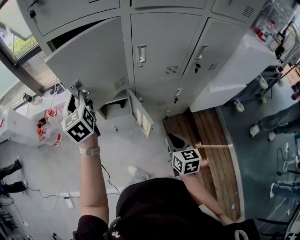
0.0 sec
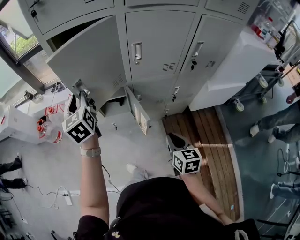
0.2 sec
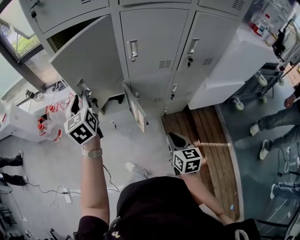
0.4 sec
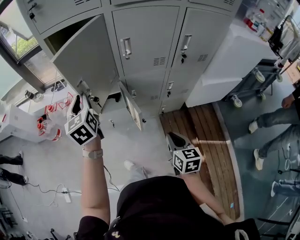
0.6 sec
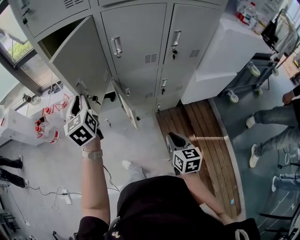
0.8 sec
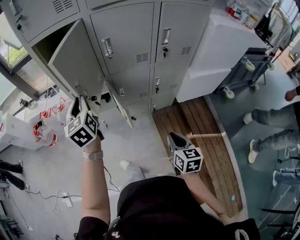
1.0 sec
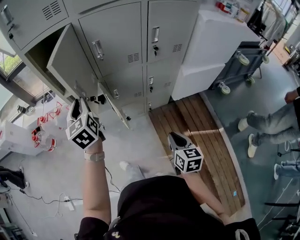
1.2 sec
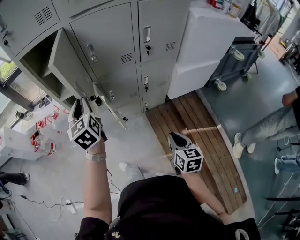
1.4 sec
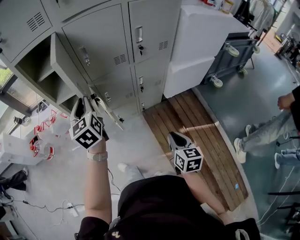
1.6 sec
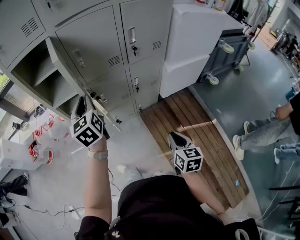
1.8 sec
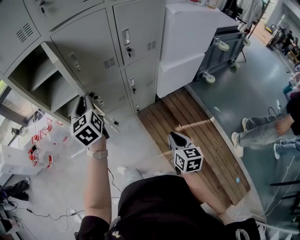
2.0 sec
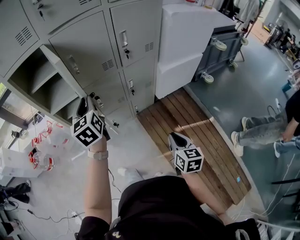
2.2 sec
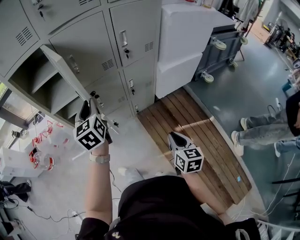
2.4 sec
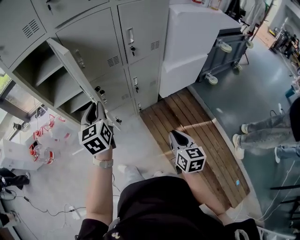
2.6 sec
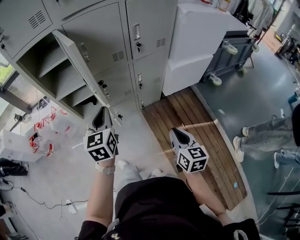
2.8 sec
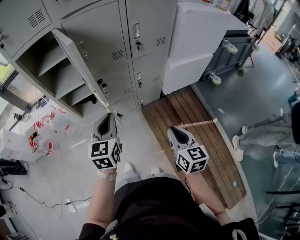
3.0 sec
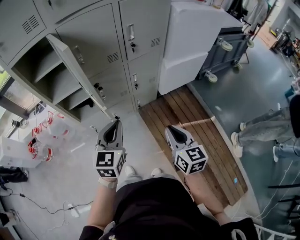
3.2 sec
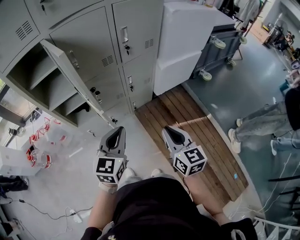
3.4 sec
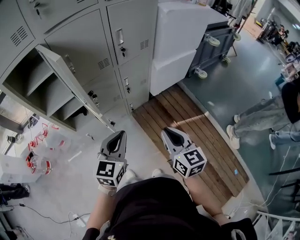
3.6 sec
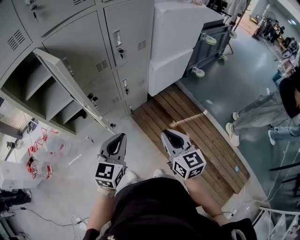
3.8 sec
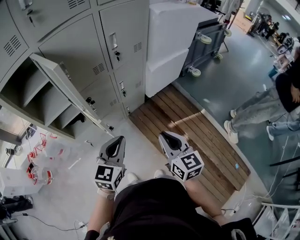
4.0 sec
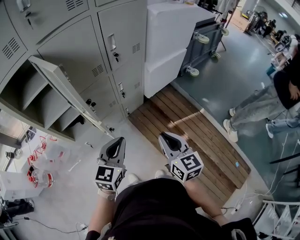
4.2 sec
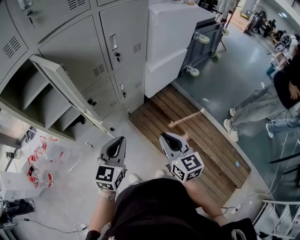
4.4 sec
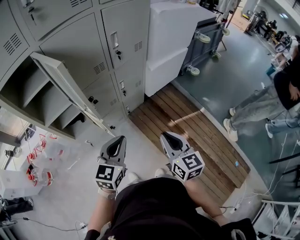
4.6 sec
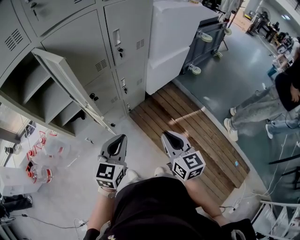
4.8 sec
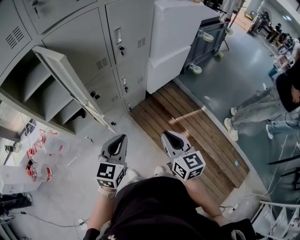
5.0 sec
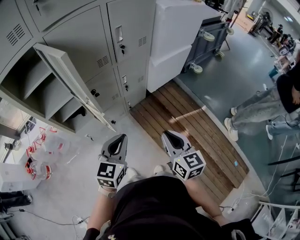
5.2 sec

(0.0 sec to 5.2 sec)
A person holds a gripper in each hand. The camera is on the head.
0.0 sec - 1.8 sec: The left gripper heads to the right and backward, covering roughly 30 cm. The right gripper goes some 25 cm backward and to the right.
1.8 sec - 3.4 sec: The left gripper moves backward and to the right, roughly 20 cm, and rotates roughly 40 degrees, while the right gripper travels upward by approximately 10 cm.
3.4 sec - 5.2 sec: The grippers stay close to where they were, moving slightly.

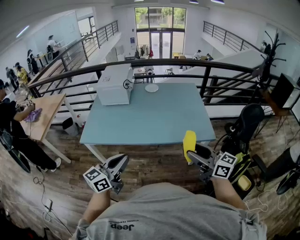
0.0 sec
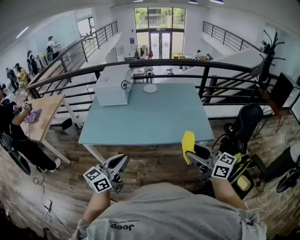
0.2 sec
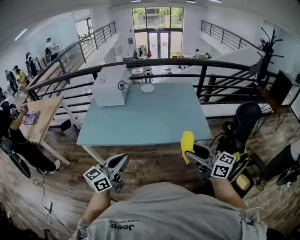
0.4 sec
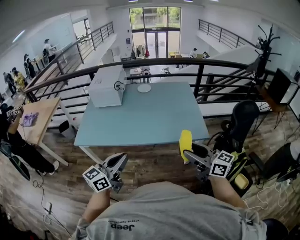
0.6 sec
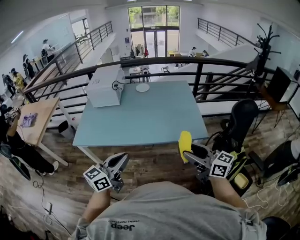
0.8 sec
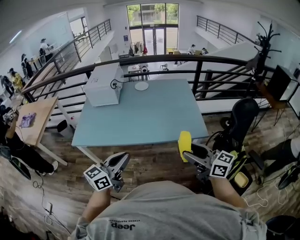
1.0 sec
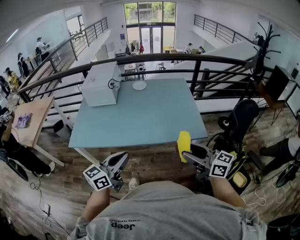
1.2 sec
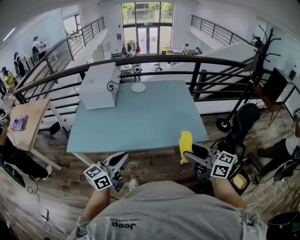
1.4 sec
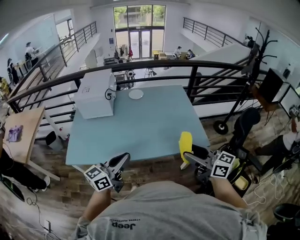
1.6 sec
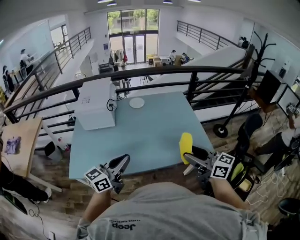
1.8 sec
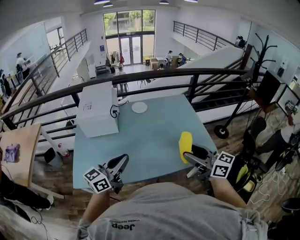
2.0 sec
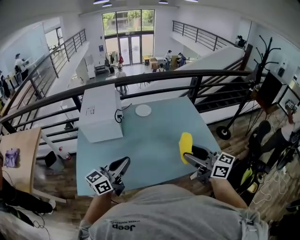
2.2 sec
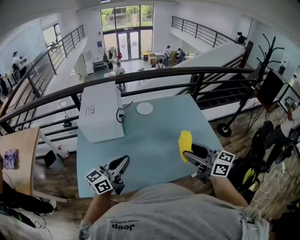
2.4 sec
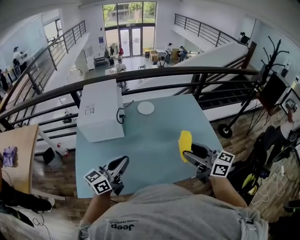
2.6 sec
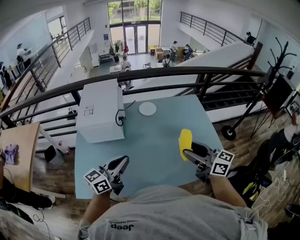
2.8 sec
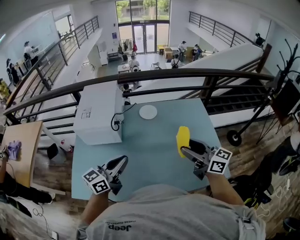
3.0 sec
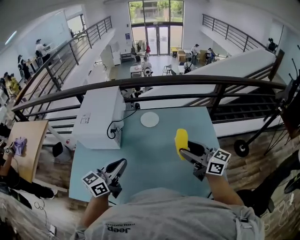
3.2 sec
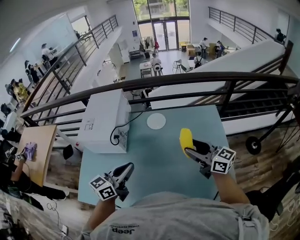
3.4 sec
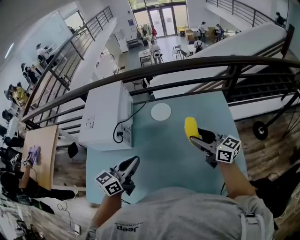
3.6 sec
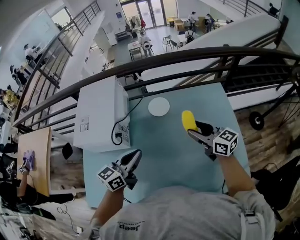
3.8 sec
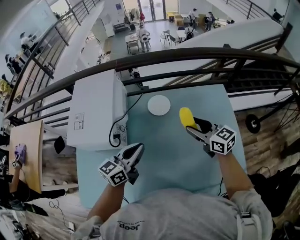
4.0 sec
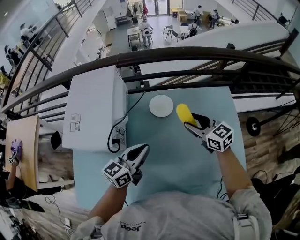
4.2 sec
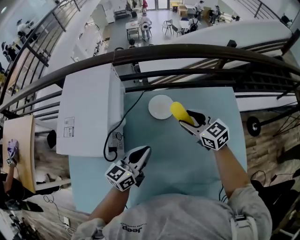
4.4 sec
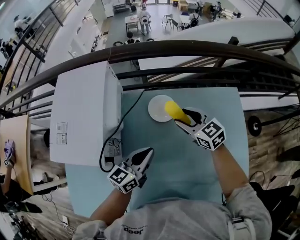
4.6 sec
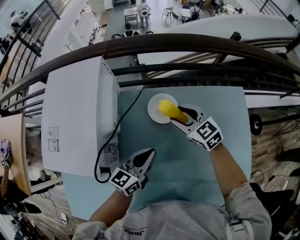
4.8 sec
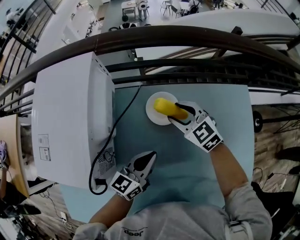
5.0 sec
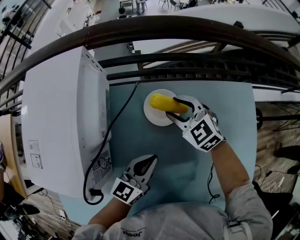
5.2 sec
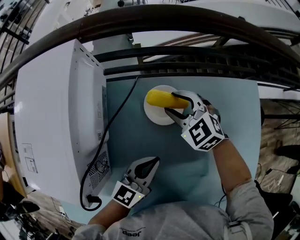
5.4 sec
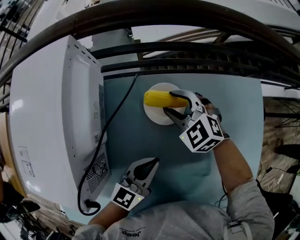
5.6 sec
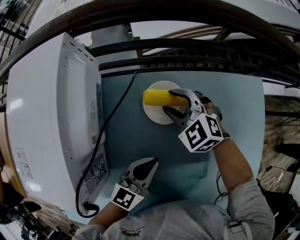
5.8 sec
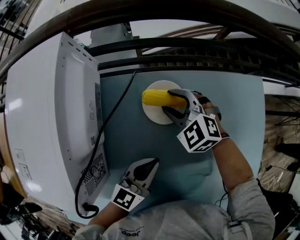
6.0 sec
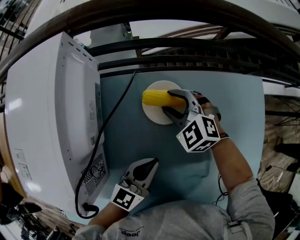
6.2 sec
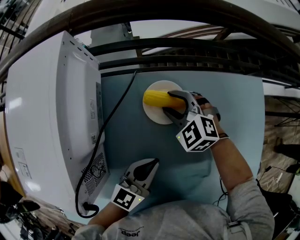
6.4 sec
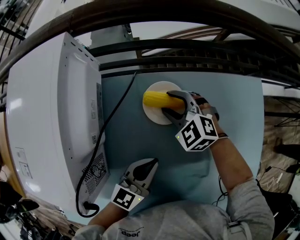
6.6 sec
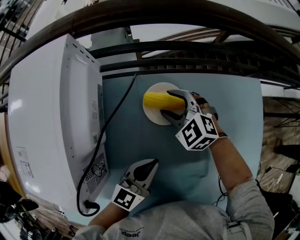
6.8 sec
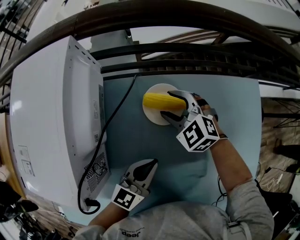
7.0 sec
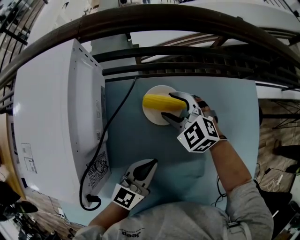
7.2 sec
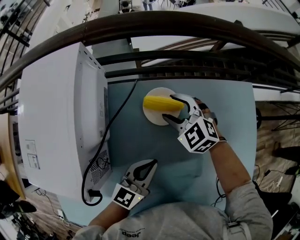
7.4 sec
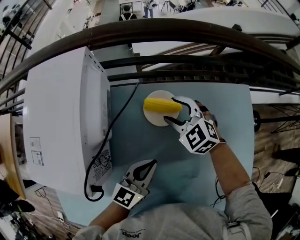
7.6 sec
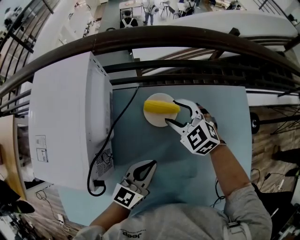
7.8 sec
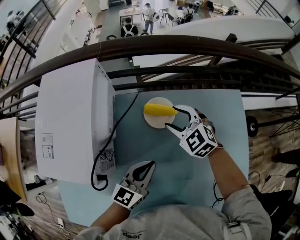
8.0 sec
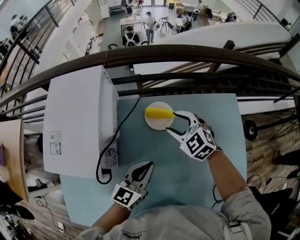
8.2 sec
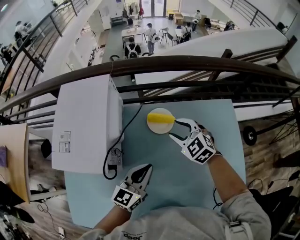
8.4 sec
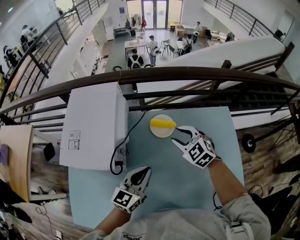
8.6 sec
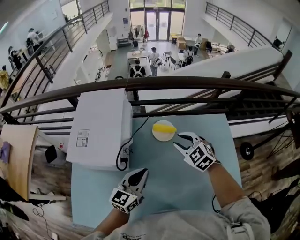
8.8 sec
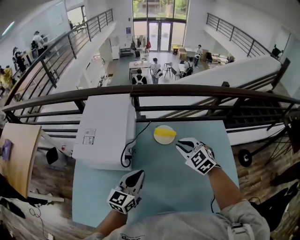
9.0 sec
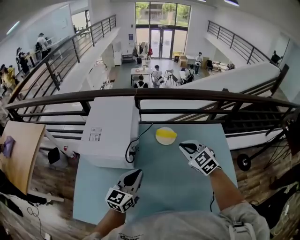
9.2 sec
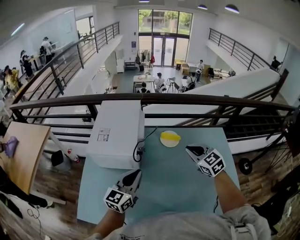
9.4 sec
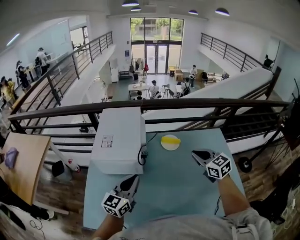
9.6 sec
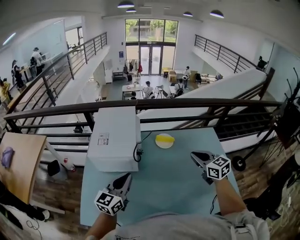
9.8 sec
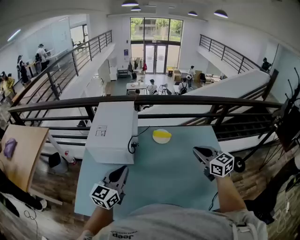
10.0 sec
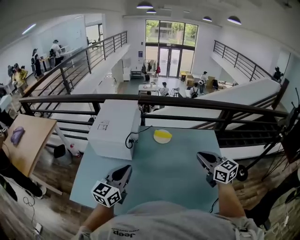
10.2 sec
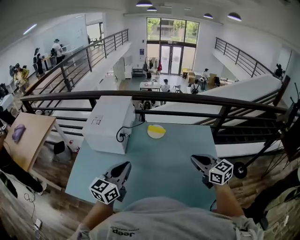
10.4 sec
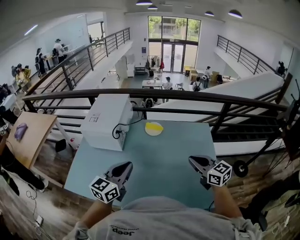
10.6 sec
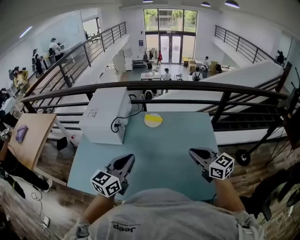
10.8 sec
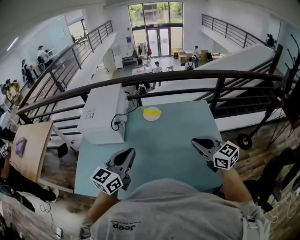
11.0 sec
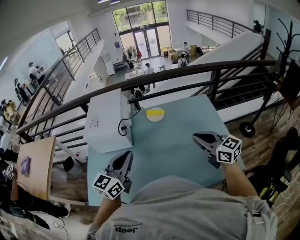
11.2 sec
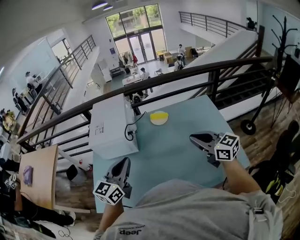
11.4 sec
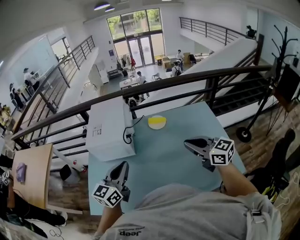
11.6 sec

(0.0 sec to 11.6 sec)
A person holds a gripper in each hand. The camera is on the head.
0.0 sec - 1.4 sec: The right gripper shifts about 5 cm forward. The left gripper shifts roughly 10 cm forward and to the right.
1.4 sec - 2.8 sec: The two grippers go approximately 35 cm forward and to the left.
2.8 sec - 4.4 sec: Both grippers move forward and downward, about 40 cm. The right gripper rotates some 30 degrees.
4.4 sec - 5.8 sec: The right gripper shifts roughly 20 cm downward, forward and to the left, and turns by approximately 40 degrees; the left gripper shifts approximately 15 cm downward.
5.8 sec - 7.2 sec: The grippers make only small movements.
7.2 sec - 8.8 sec: The grippers both shift upward and backward by some 20 cm. The right gripper closes.
8.8 sec - 10.2 sec: The left gripper goes roughly 25 cm backward and upward. Meanwhile the right gripper moves backward, upward and to the right, about 30 cm, turns by about 40 degrees, and closes its fingers.
10.2 sec - 11.6 sec: The right gripper moves to the left and backward, roughly 10 cm; the left gripper reaches approximately 10 cm to the right, then returns.

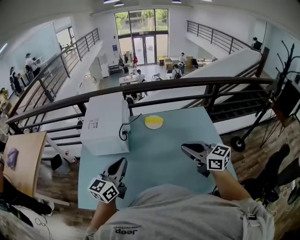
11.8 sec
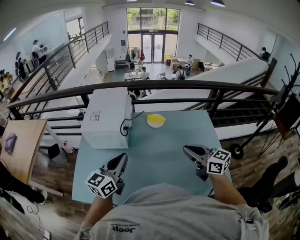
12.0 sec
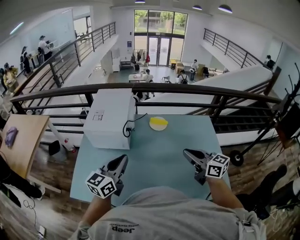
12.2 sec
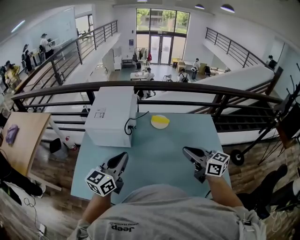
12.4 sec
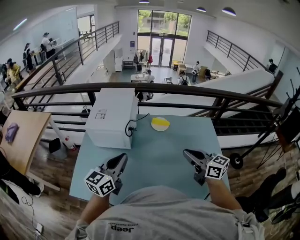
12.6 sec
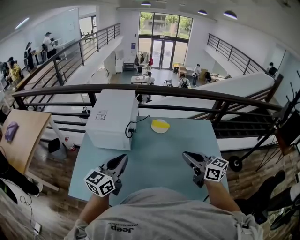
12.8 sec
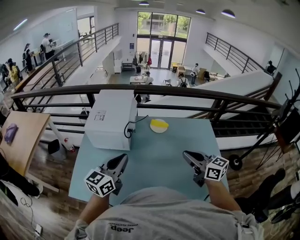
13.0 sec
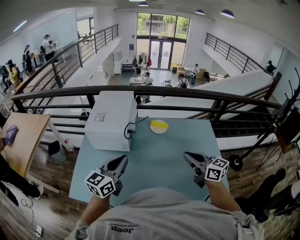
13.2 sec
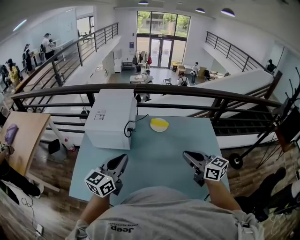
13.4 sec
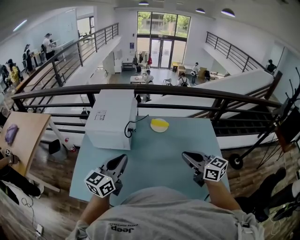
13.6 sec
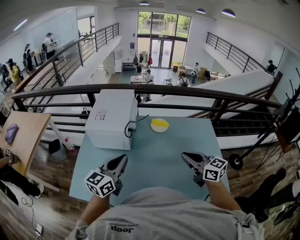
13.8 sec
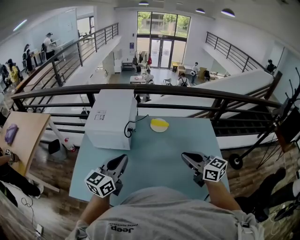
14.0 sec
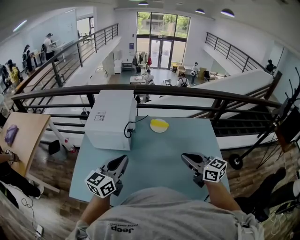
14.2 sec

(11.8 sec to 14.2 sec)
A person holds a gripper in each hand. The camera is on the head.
11.8 sec - 14.2 sec: The grippers make only small movements.

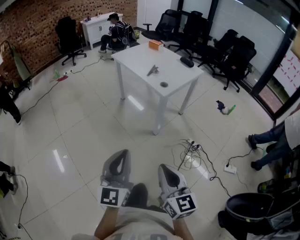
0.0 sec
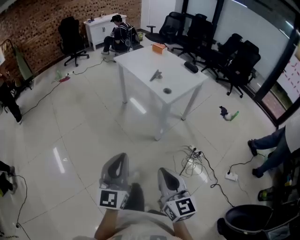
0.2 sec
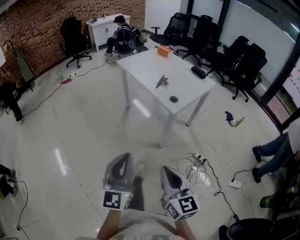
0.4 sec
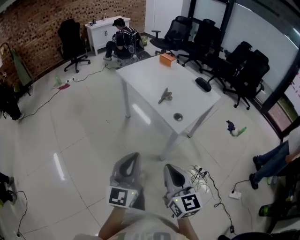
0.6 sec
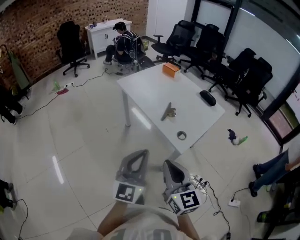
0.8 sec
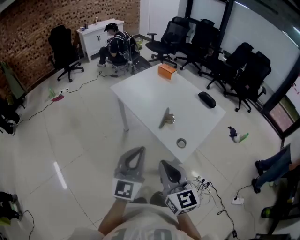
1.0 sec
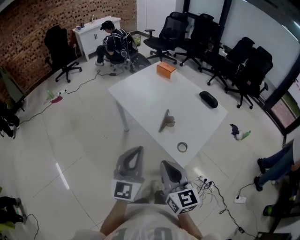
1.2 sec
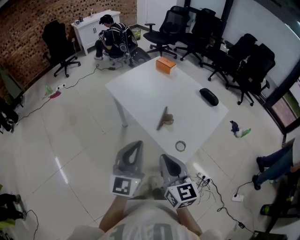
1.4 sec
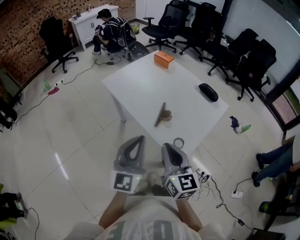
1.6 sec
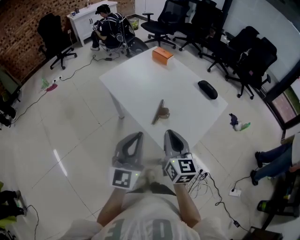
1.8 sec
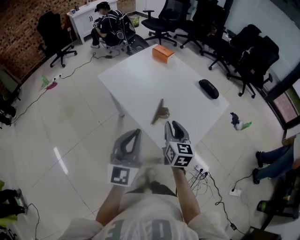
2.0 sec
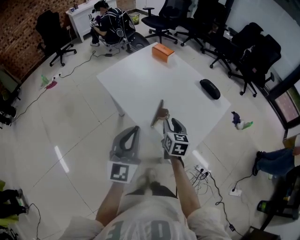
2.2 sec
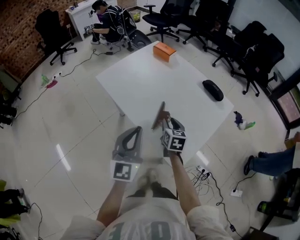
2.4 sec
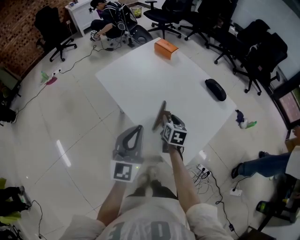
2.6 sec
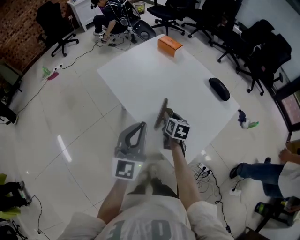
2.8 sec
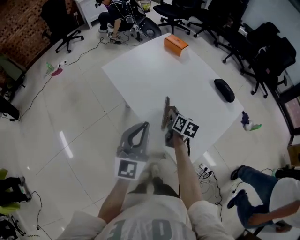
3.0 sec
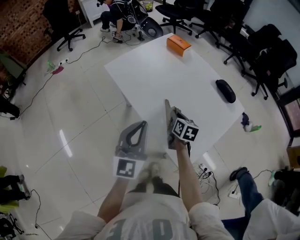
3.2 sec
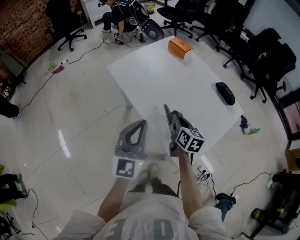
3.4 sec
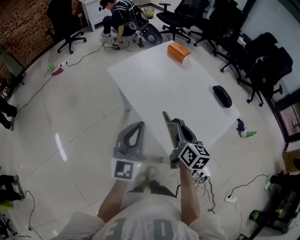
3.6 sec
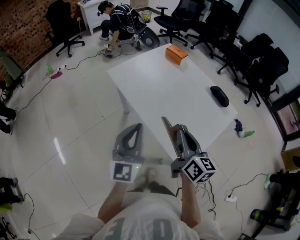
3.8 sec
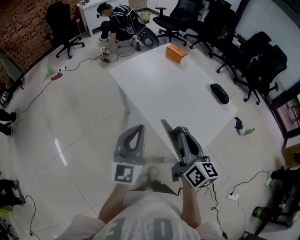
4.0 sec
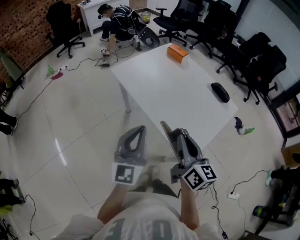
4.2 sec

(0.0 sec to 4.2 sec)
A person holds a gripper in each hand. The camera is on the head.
0.0 sec - 1.4 sec: Both grippers are carried forward, roughly 50 cm.
1.4 sec - 2.8 sec: The right gripper travels forward and downward by roughly 35 cm, tilts its fingers about 30 degrees downward, and opens. Meanwhile the left gripper goes about 15 cm forward and downward.
2.8 sec - 4.2 sec: The left gripper is displaced to the left and backward by roughly 10 cm. Meanwhile the right gripper travels upward and backward by about 30 cm, tips its fingers upward by roughly 30 degrees, and closes.
